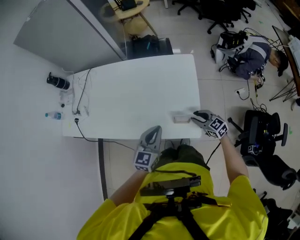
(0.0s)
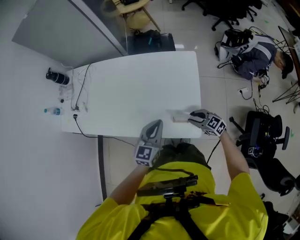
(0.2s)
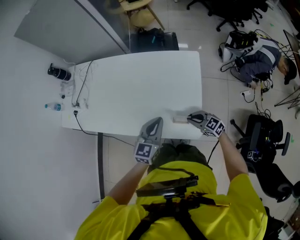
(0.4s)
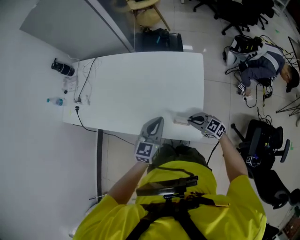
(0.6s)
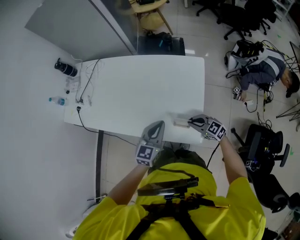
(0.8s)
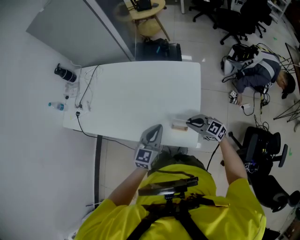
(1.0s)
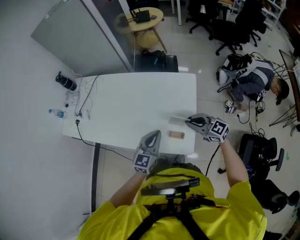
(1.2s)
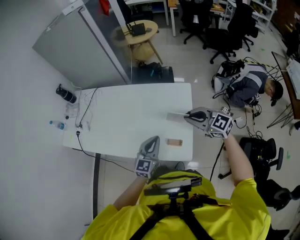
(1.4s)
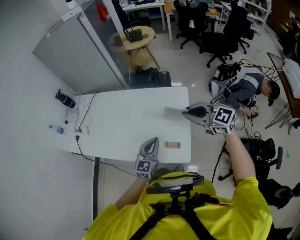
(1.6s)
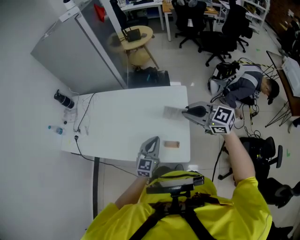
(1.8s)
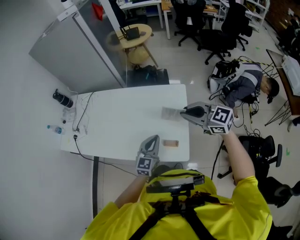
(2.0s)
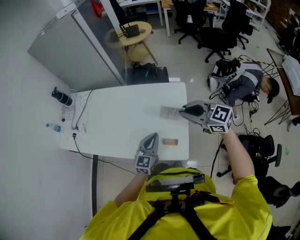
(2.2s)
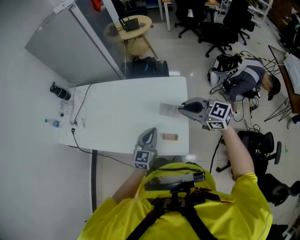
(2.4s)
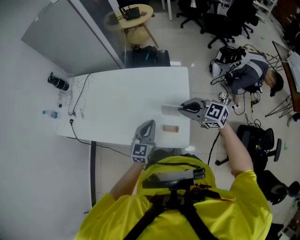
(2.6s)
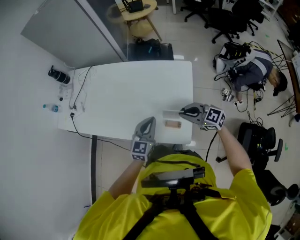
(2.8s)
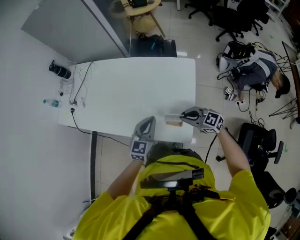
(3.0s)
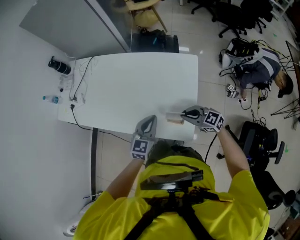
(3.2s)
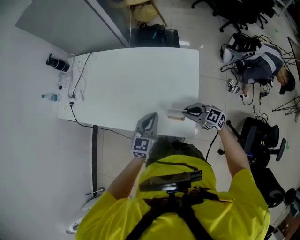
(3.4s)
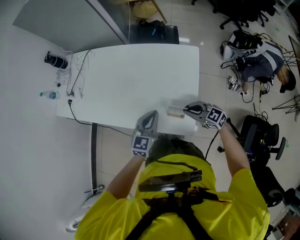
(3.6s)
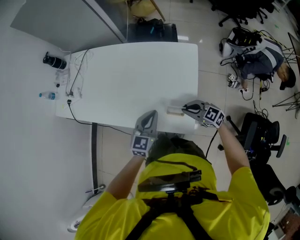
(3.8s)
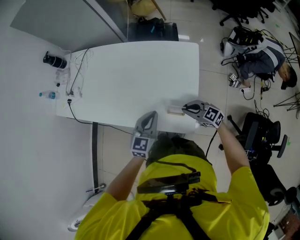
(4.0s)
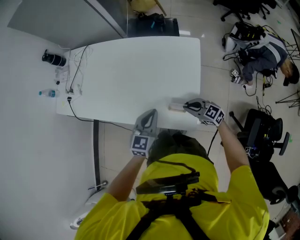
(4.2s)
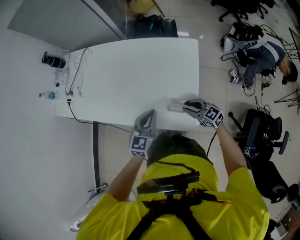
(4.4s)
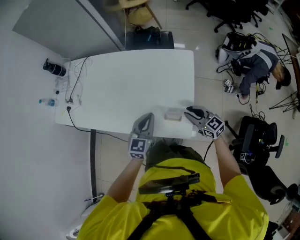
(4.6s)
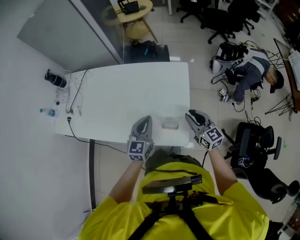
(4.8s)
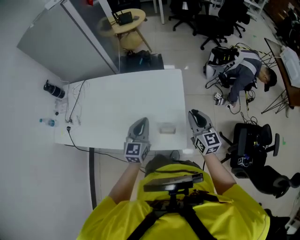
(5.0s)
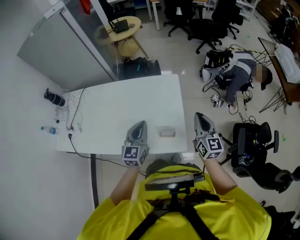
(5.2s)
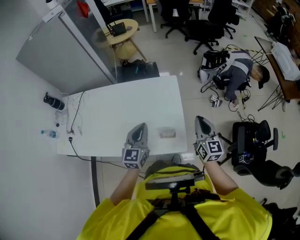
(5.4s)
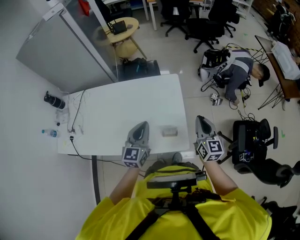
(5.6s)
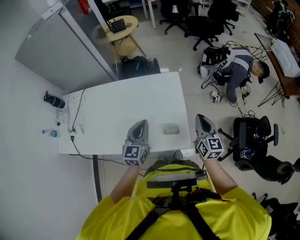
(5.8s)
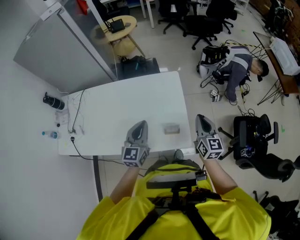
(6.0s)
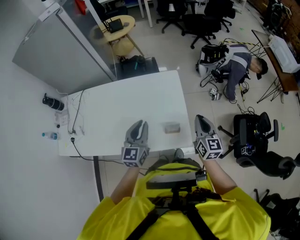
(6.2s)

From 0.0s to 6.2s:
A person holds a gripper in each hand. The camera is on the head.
From 0.0s to 1.6s: The left gripper moves to the right, some 5 cm; the right gripper shifts approximately 30 cm upward, turns by approximately 20 degrees, and closes.
From 1.6s to 3.2s: The right gripper travels downward by approximately 25 cm. The left gripper ends up roughly 5 cm from where it was.
From 3.2s to 4.6s: The right gripper heads to the right, covering roughly 5 cm, and rotates roughly 30 degrees.
From 4.6s to 6.2s: The two grippers go roughly 10 cm upward. The right gripper changes its angle by some 40 degrees, and closes.

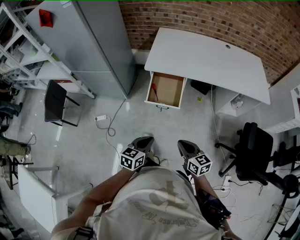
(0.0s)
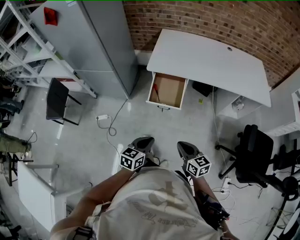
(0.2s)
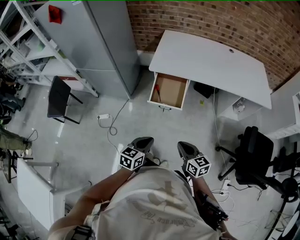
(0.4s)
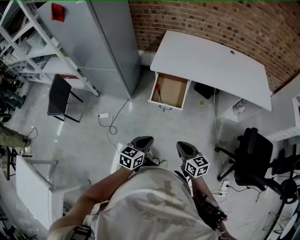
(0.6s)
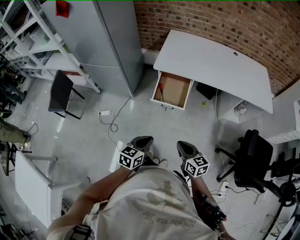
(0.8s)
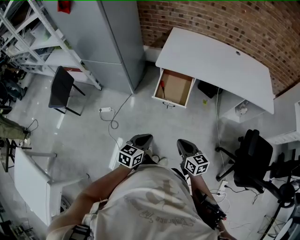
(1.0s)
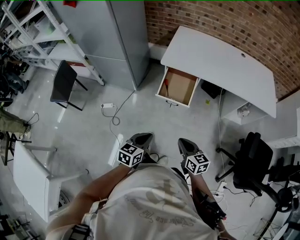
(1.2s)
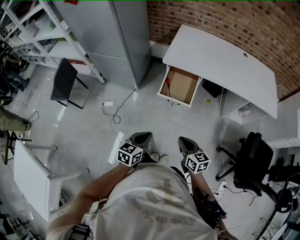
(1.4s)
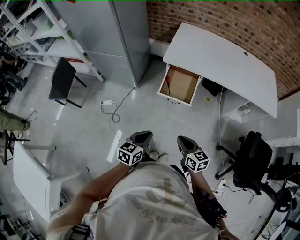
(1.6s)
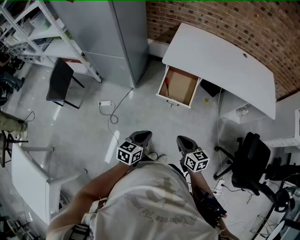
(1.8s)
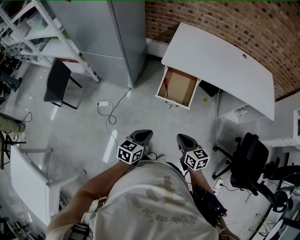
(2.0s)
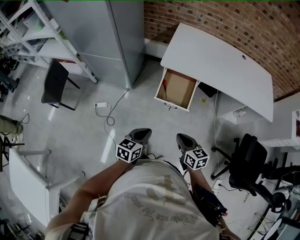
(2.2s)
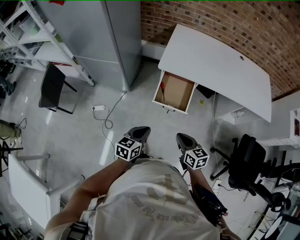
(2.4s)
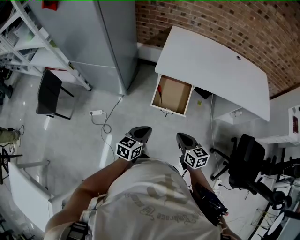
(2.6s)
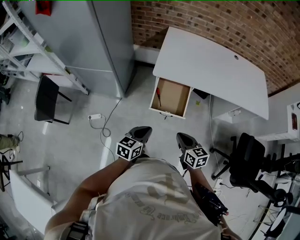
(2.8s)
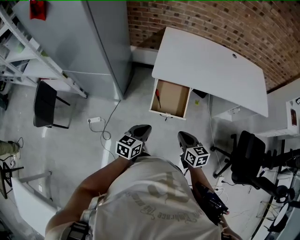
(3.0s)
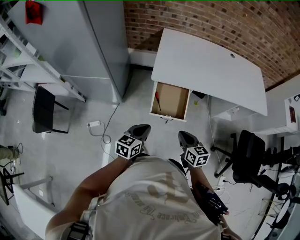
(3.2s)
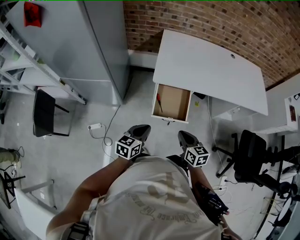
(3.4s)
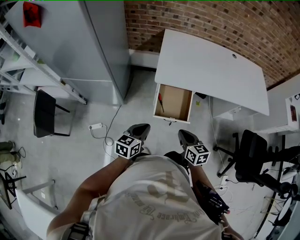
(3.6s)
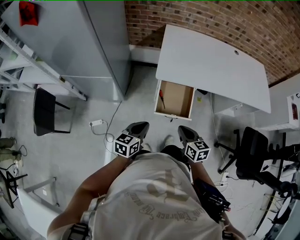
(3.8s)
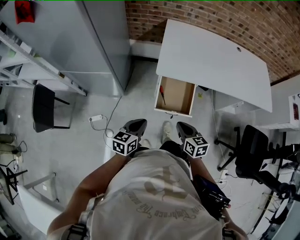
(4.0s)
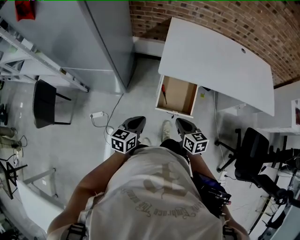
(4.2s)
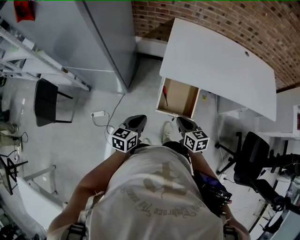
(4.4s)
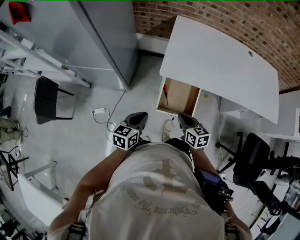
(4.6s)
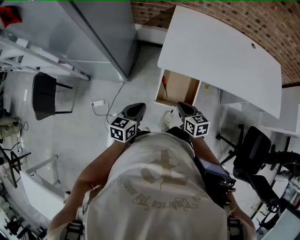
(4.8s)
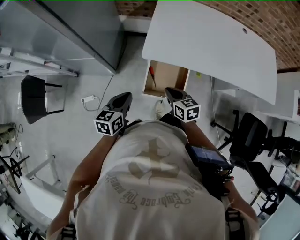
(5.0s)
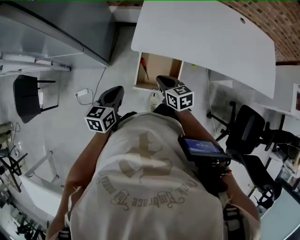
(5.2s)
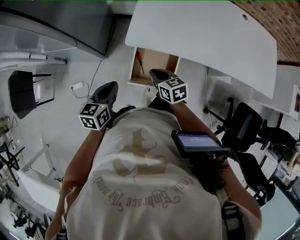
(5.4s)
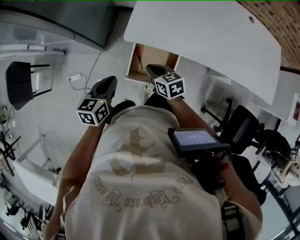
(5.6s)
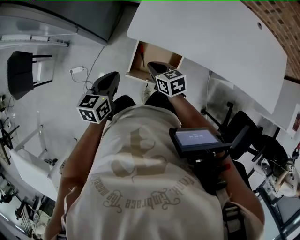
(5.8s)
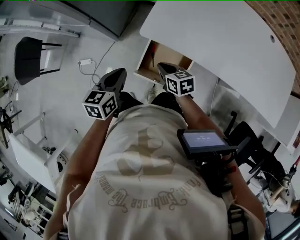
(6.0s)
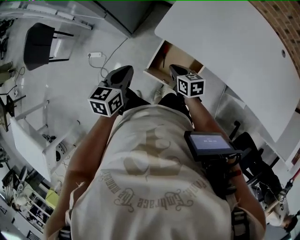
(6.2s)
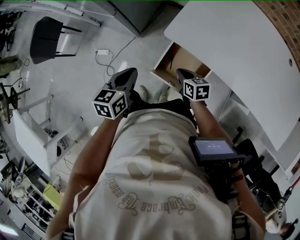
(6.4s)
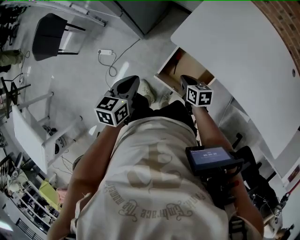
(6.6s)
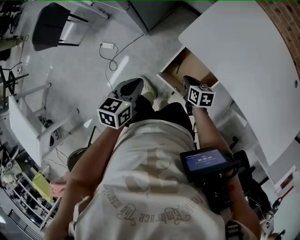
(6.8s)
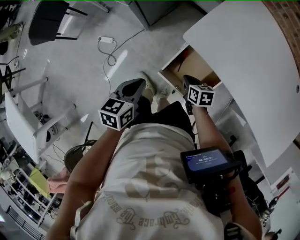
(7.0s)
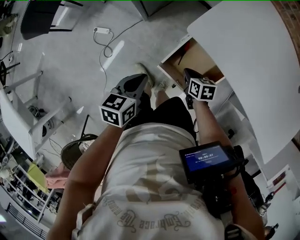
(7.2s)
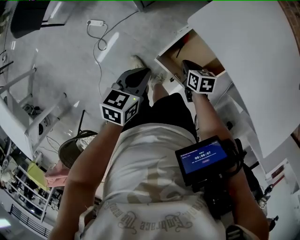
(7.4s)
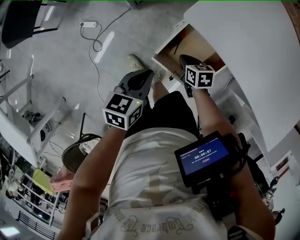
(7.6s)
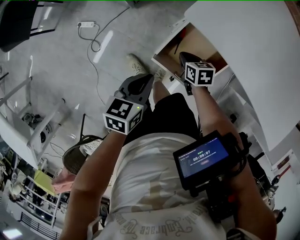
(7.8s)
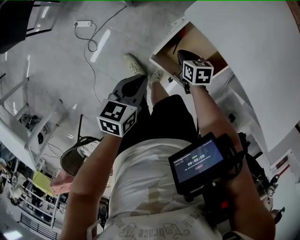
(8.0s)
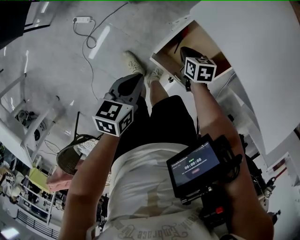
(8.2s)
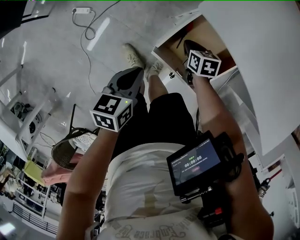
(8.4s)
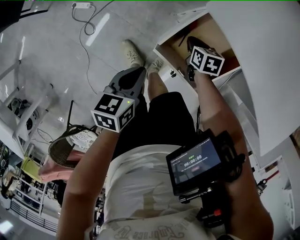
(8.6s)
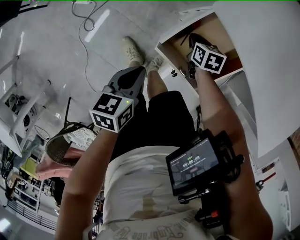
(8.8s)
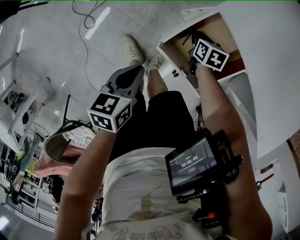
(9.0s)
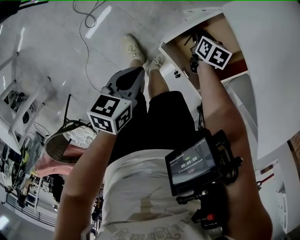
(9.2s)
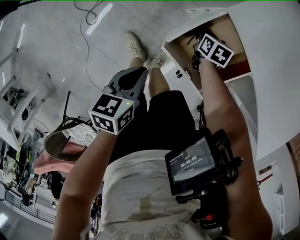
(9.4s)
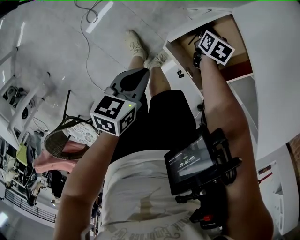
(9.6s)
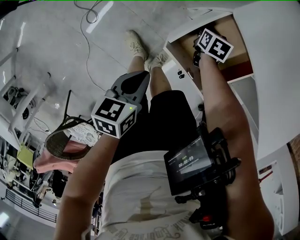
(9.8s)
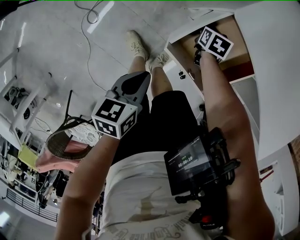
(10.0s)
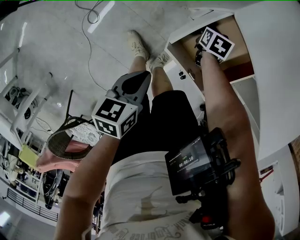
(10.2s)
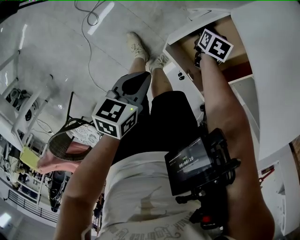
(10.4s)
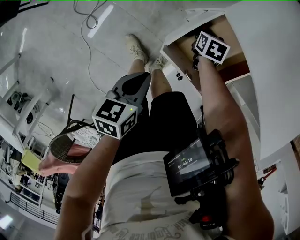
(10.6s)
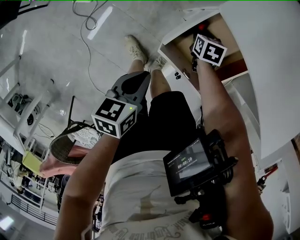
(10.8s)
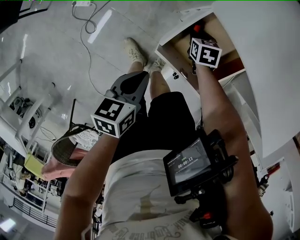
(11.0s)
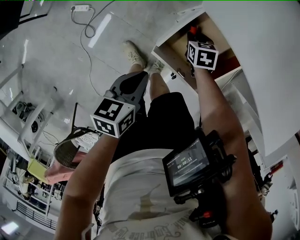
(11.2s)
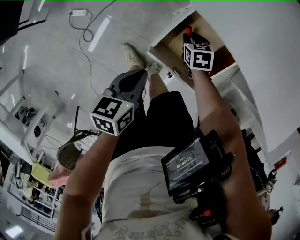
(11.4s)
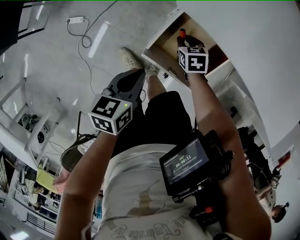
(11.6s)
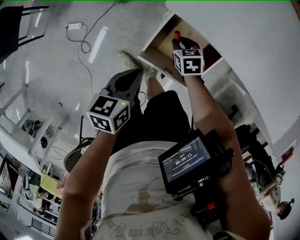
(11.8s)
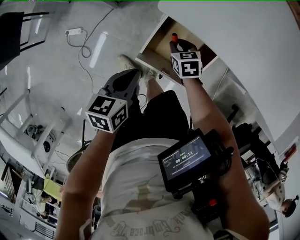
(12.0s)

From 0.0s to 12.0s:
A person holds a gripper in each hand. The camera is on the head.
From 0.0s to 1.6s: The grippers both shift to the left by roughly 5 cm.
From 1.6s to 3.0s: Both grippers travel together forward, about 15 cm.
From 3.0s to 4.4s: Both grippers move forward and to the left, about 10 cm.
From 4.4s to 6.0s: The right gripper shifts about 20 cm forward and downward, and changes its angle by approximately 30 degrees; the left gripper moves forward and to the right, about 15 cm, and swivels some 20 degrees.
From 6.0s to 7.6s: The two grippers go approximately 15 cm downward.
From 7.6s to 9.0s: The right gripper moves downward and forward, about 10 cm; the left gripper shifts about 10 cm downward.
From 9.0s to 10.4s: The grippers stay close to where they were, moving slightly.
From 10.4s to 12.0s: The right gripper heads upward and backward, covering about 10 cm; the left gripper travels upward, forward and to the right by approximately 10 cm.

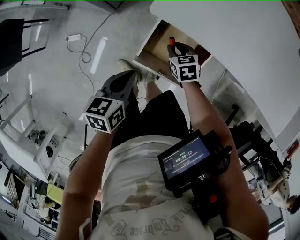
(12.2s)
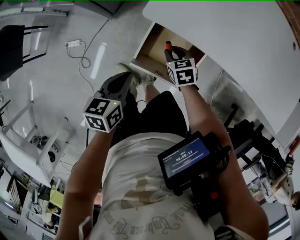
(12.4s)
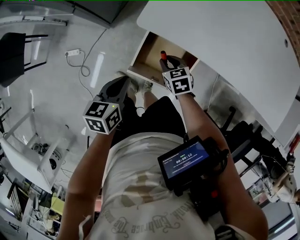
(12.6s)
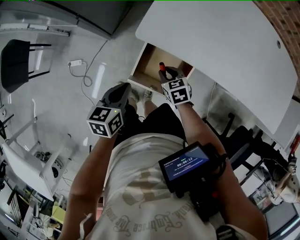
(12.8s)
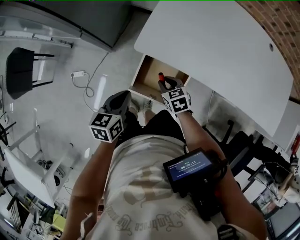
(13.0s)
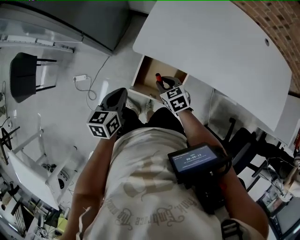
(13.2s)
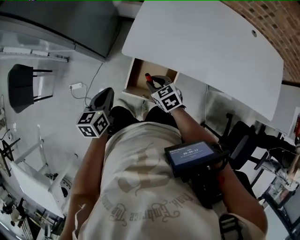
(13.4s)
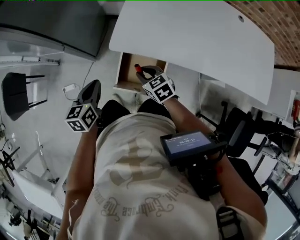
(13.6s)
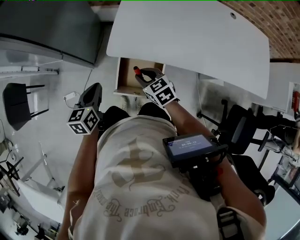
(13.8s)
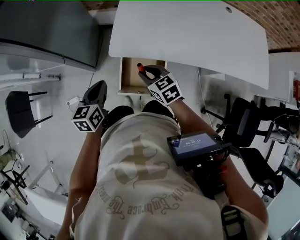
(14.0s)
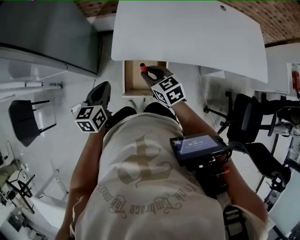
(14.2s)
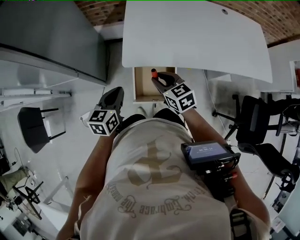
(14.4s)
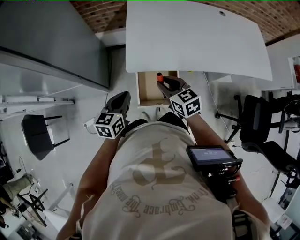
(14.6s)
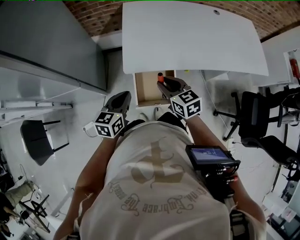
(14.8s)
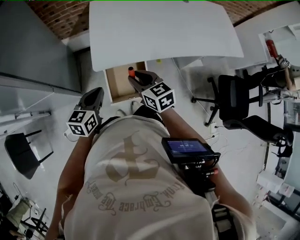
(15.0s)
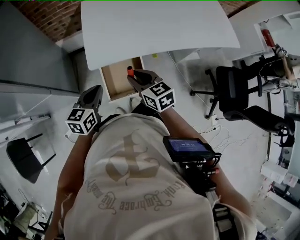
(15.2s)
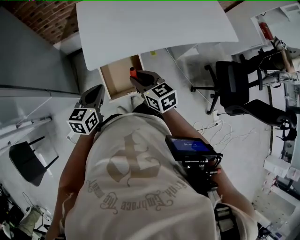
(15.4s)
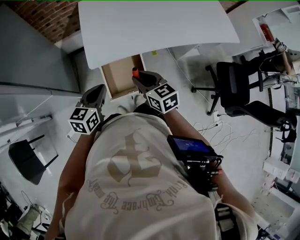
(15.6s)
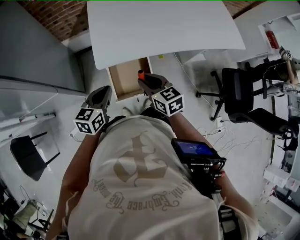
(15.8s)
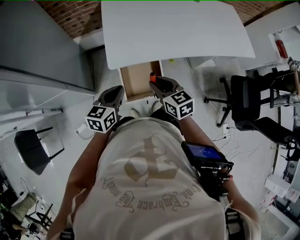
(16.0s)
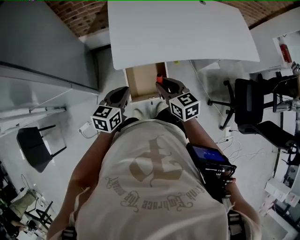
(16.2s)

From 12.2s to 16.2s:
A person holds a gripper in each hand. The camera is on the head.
From 12.2s to 13.6s: Both grippers travel together upward, approximately 15 cm.
From 13.6s to 14.8s: The right gripper heads upward, covering roughly 15 cm, and changes its angle by approximately 30 degrees. Meanwhile the left gripper turns by some 30 degrees.
From 14.8s to 16.2s: The grippers move only a little.

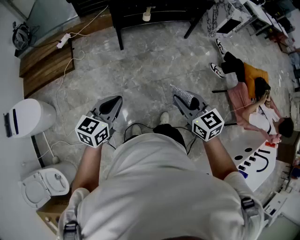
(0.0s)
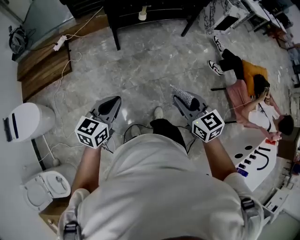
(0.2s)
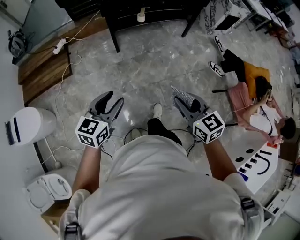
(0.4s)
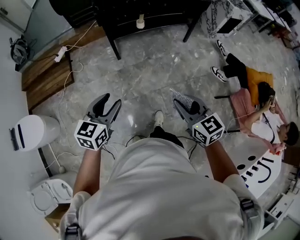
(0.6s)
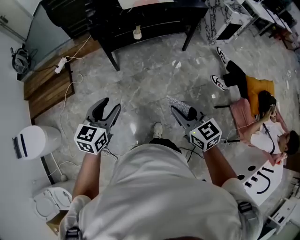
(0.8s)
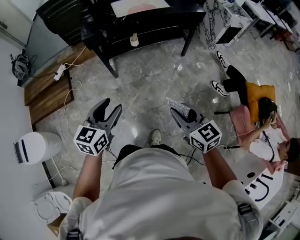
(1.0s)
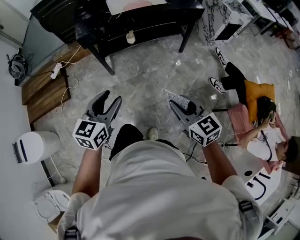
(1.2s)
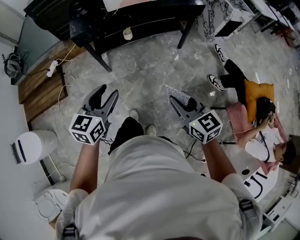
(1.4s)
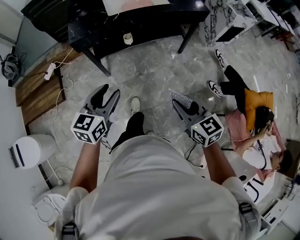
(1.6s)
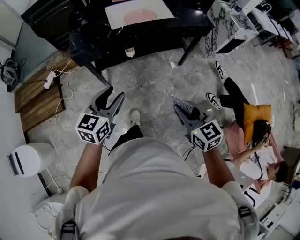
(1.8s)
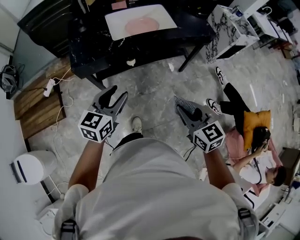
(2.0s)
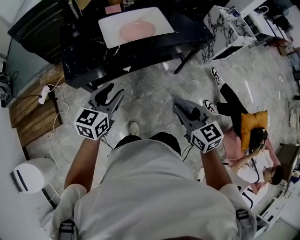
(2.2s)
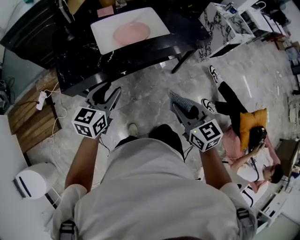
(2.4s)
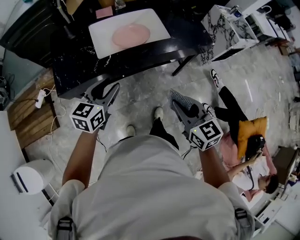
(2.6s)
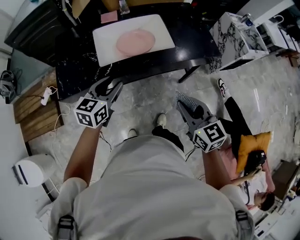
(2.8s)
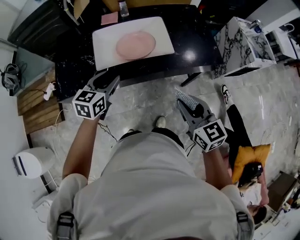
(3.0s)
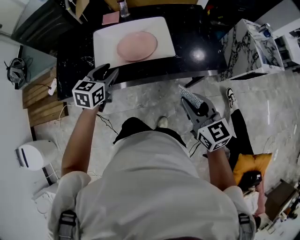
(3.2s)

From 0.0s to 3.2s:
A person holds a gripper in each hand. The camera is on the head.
From 0.0s to 1.6s: Both grippers are carried forward and to the right, about 40 cm. The left gripper opens up.
From 1.6s to 3.2s: Both grippers are carried forward, roughly 50 cm.
